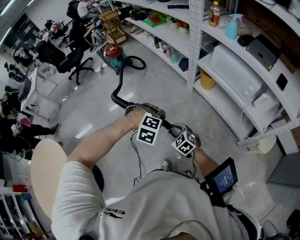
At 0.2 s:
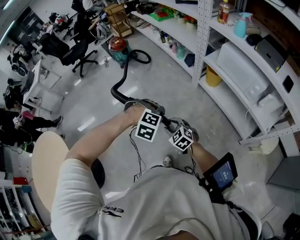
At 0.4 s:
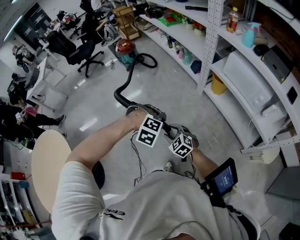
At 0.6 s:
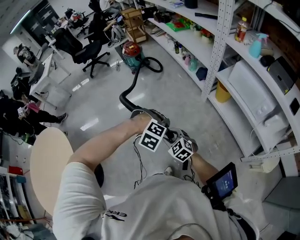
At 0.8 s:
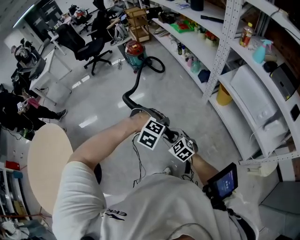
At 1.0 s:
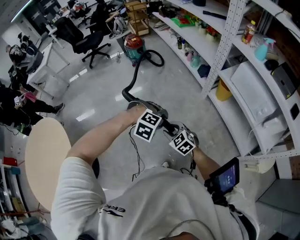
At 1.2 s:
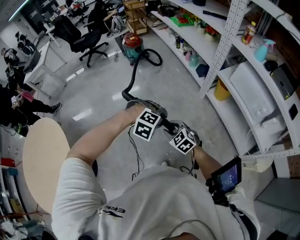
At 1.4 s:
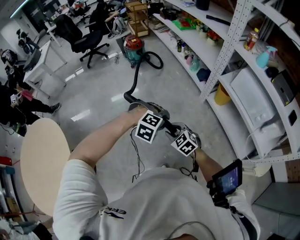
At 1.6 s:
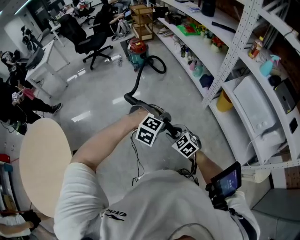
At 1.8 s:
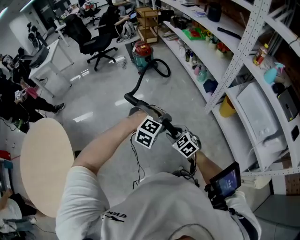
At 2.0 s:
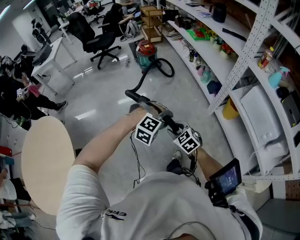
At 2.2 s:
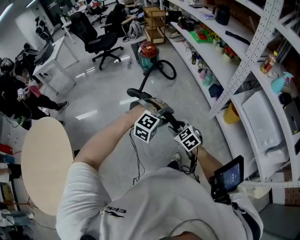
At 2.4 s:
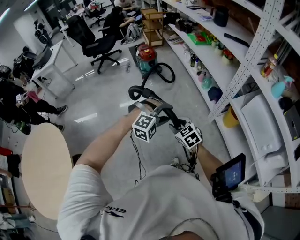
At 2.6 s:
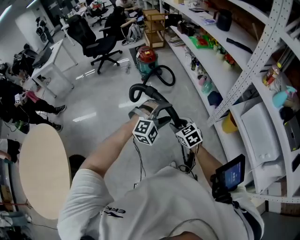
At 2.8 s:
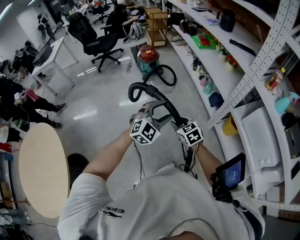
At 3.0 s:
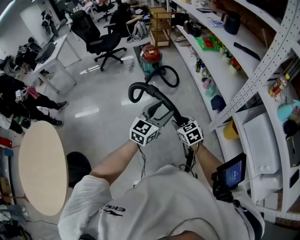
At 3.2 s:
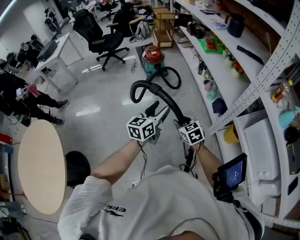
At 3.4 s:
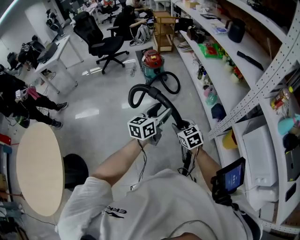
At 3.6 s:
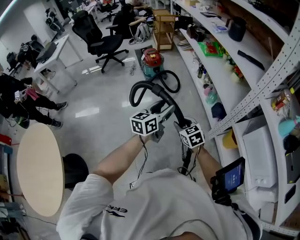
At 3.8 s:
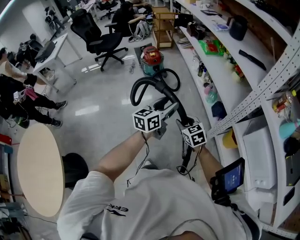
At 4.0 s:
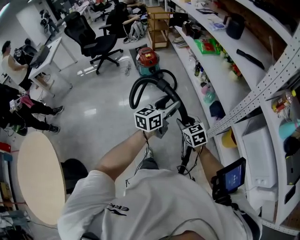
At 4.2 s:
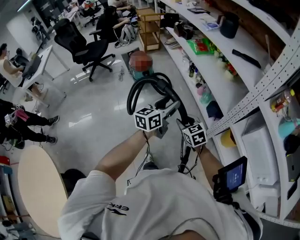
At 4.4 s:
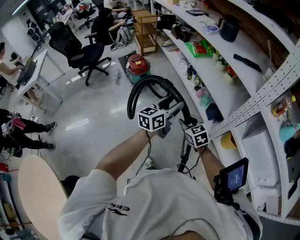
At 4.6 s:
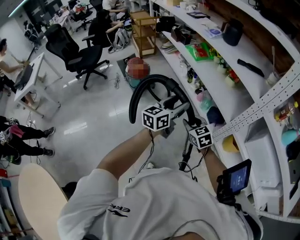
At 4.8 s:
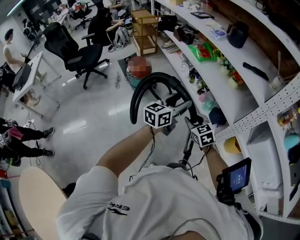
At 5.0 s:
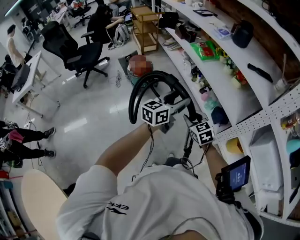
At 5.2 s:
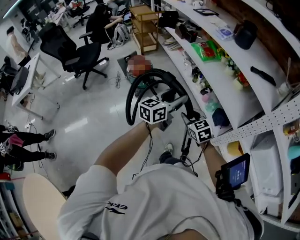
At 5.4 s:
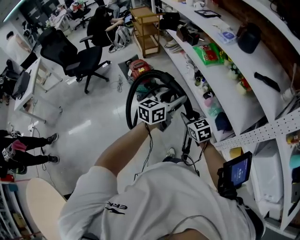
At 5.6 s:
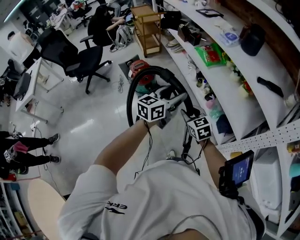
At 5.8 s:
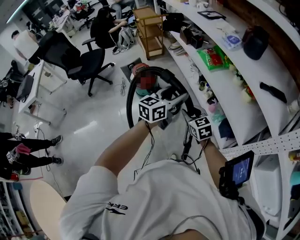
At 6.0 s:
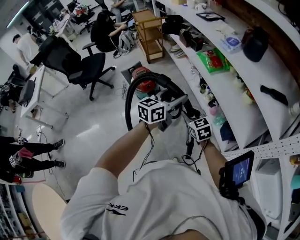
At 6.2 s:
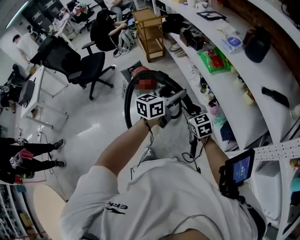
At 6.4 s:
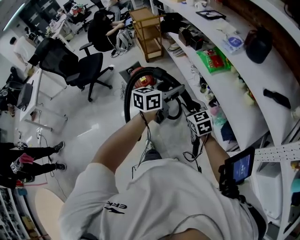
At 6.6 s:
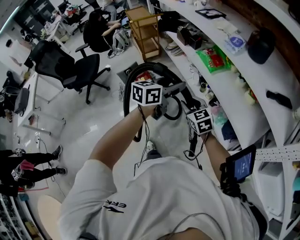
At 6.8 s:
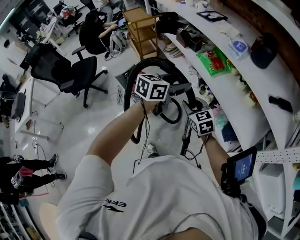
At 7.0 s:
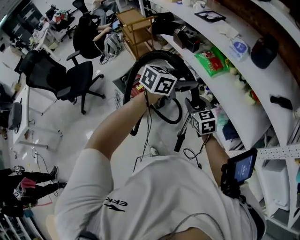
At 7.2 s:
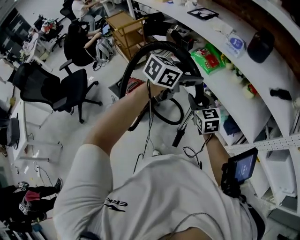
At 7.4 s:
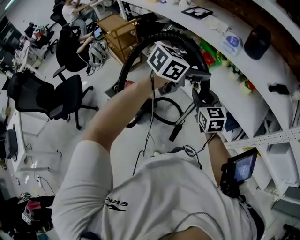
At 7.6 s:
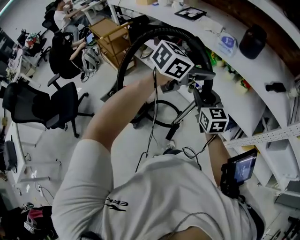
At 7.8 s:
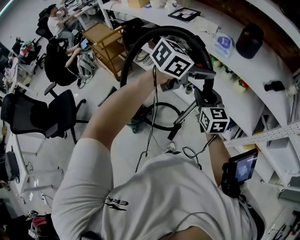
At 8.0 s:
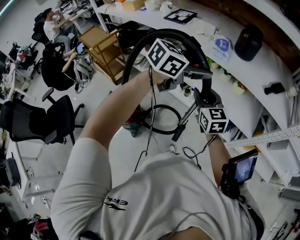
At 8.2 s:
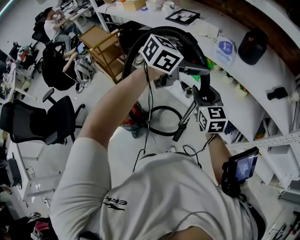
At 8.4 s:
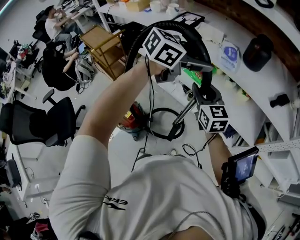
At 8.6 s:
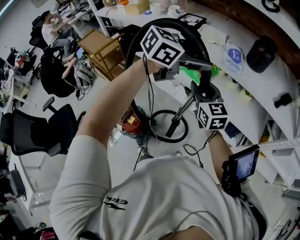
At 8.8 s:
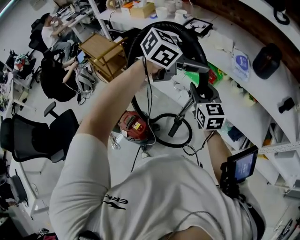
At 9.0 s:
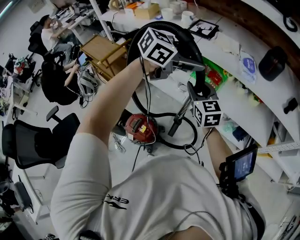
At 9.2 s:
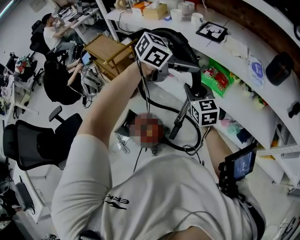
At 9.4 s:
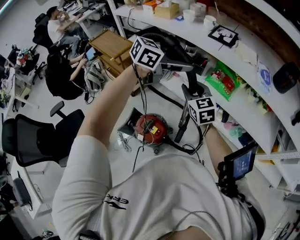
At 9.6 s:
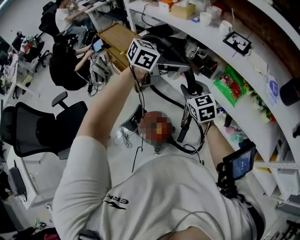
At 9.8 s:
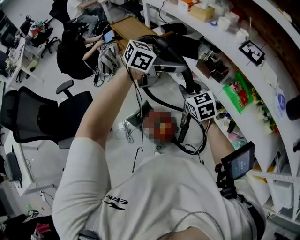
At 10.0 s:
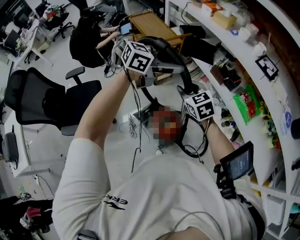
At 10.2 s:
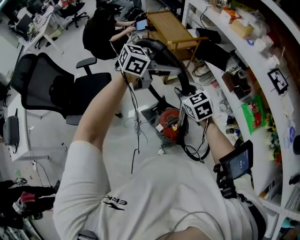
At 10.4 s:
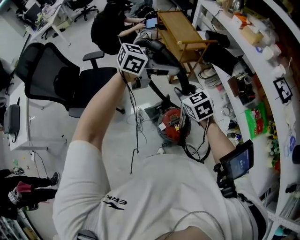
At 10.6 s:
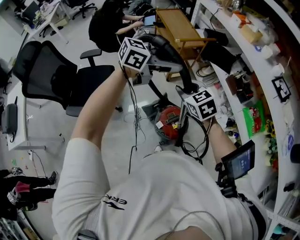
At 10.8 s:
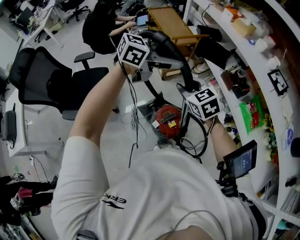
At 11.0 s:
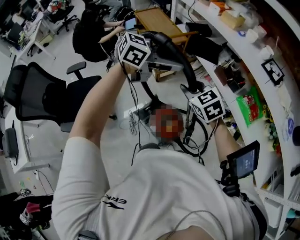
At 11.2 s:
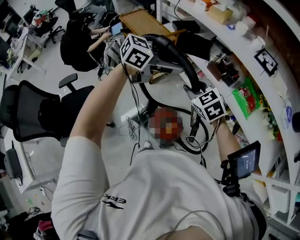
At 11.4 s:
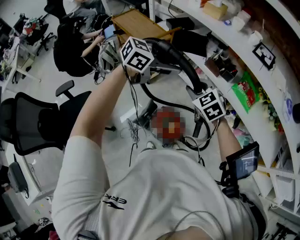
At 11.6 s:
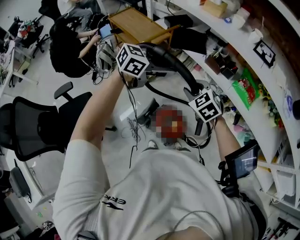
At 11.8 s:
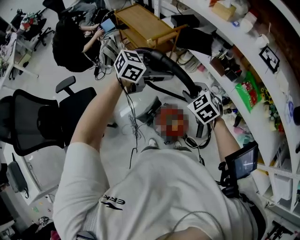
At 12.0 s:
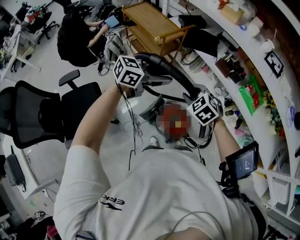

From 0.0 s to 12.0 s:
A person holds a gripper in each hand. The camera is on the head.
From 0.0 s to 1.6 s: The right gripper changes place by some 20 cm; the left gripper ends up approximately 15 cm from where it was.
From 1.6 s to 3.0 s: Both grippers travel together forward, approximately 30 cm. The left gripper points its fingers roughly 60 degrees further upward.
From 3.0 s to 4.4 s: The two grippers go approximately 25 cm forward. The left gripper turns by roughly 30 degrees.
From 4.4 s to 6.0 s: Both grippers travel together forward, roughly 30 cm.
From 6.0 s to 7.6 s: The right gripper moves some 25 cm, and swivels about 40 degrees. Meanwhile the left gripper changes place by roughly 20 cm, and swivels roughly 60 degrees.
From 7.6 s to 9.0 s: Both grippers move to the left, about 25 cm.
From 9.0 s to 10.4 s: Both grippers are carried roughly 50 cm. The right gripper turns by some 50 degrees; the left gripper turns by approximately 40 degrees.
From 10.4 s to 12.0 s: The left gripper moves downward, some 10 cm, while the right gripper changes its angle by roughly 20 degrees.

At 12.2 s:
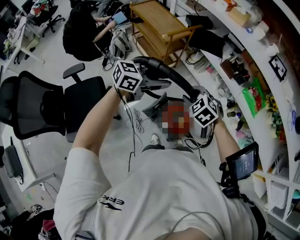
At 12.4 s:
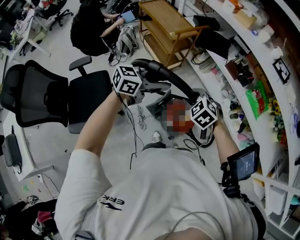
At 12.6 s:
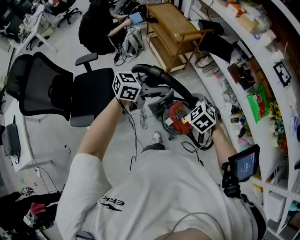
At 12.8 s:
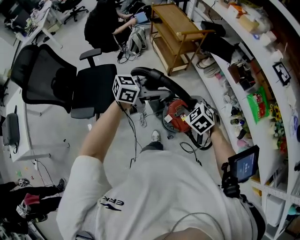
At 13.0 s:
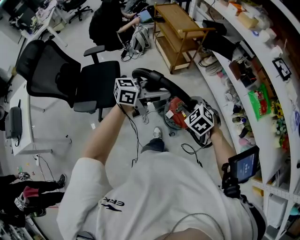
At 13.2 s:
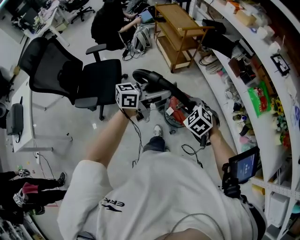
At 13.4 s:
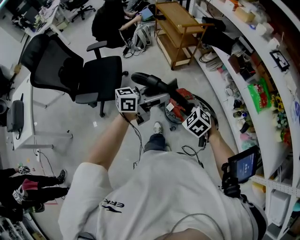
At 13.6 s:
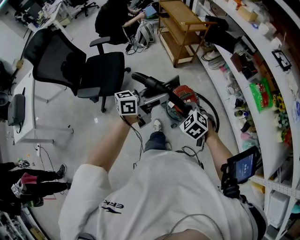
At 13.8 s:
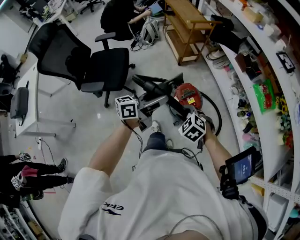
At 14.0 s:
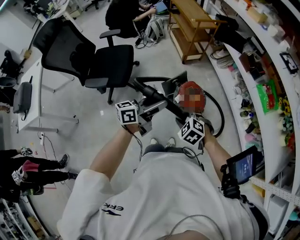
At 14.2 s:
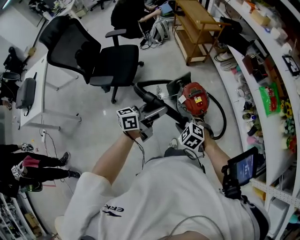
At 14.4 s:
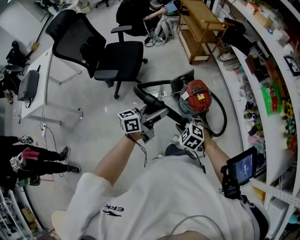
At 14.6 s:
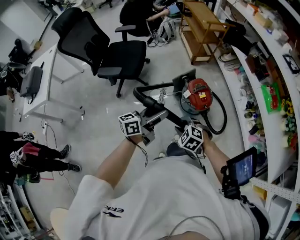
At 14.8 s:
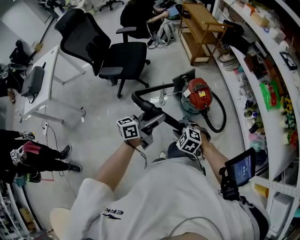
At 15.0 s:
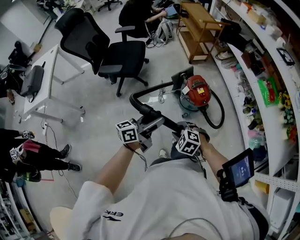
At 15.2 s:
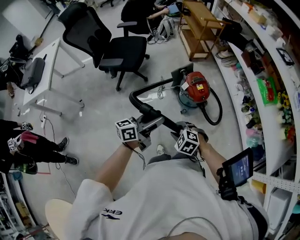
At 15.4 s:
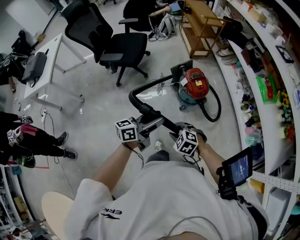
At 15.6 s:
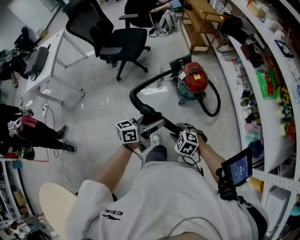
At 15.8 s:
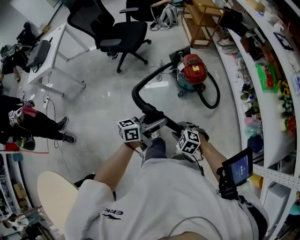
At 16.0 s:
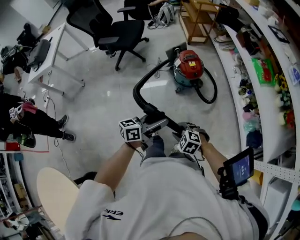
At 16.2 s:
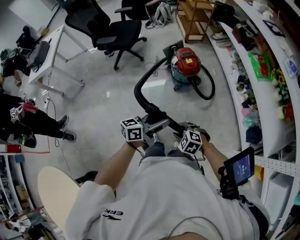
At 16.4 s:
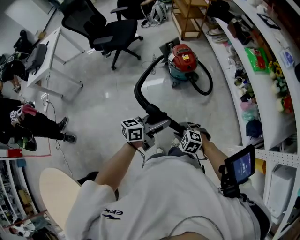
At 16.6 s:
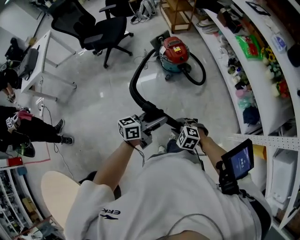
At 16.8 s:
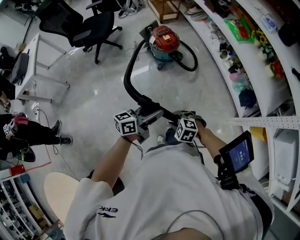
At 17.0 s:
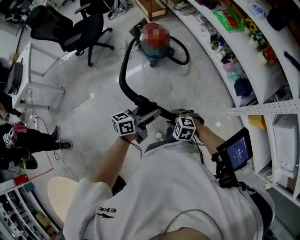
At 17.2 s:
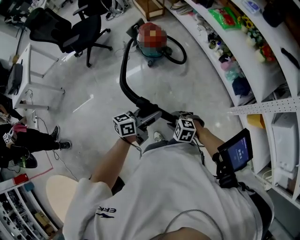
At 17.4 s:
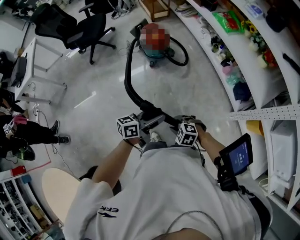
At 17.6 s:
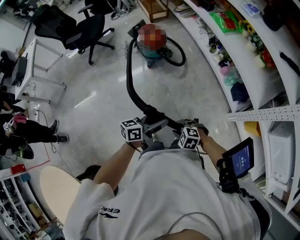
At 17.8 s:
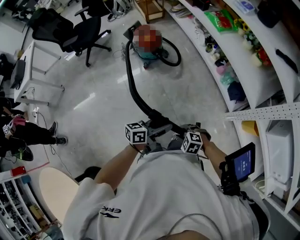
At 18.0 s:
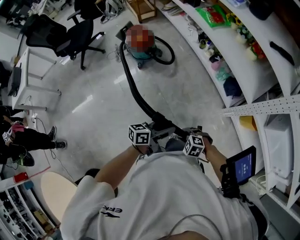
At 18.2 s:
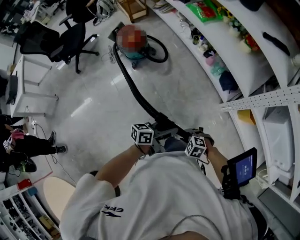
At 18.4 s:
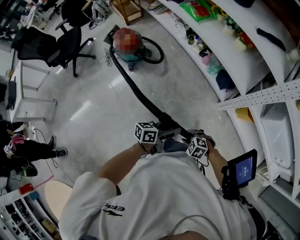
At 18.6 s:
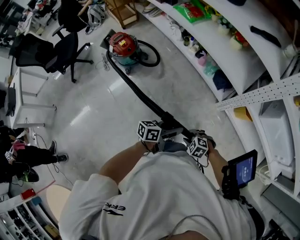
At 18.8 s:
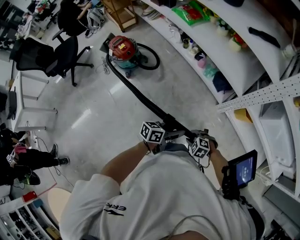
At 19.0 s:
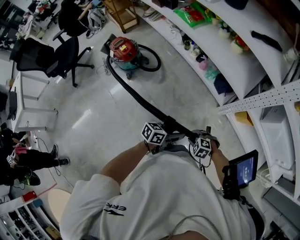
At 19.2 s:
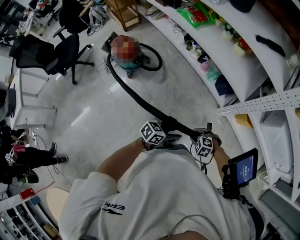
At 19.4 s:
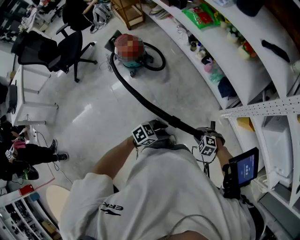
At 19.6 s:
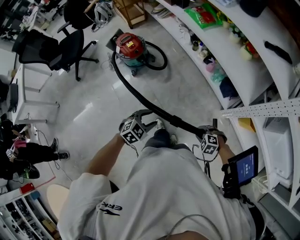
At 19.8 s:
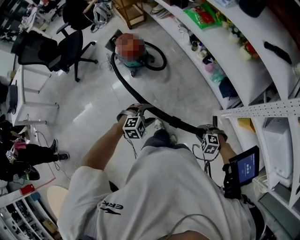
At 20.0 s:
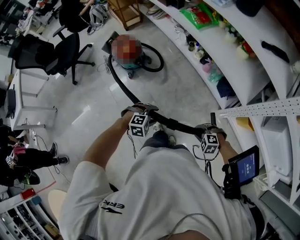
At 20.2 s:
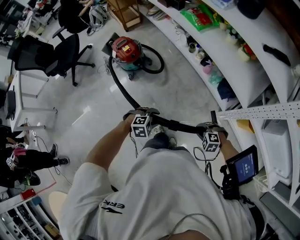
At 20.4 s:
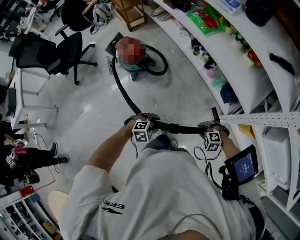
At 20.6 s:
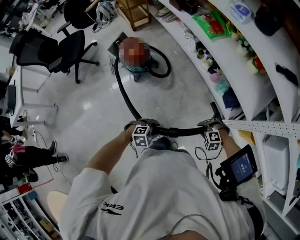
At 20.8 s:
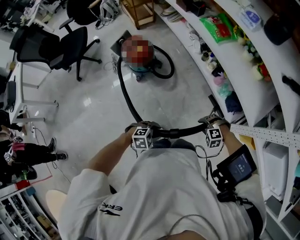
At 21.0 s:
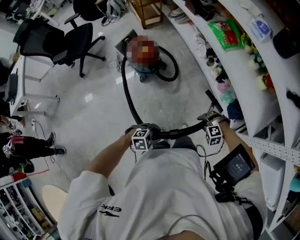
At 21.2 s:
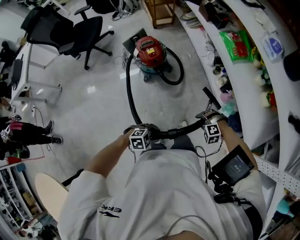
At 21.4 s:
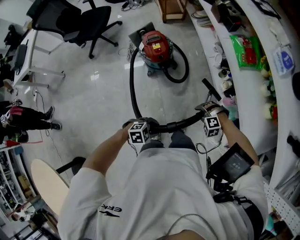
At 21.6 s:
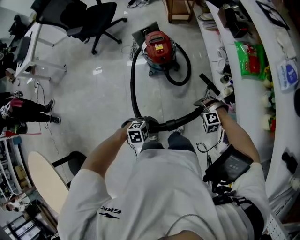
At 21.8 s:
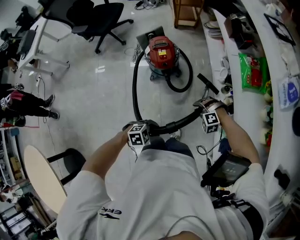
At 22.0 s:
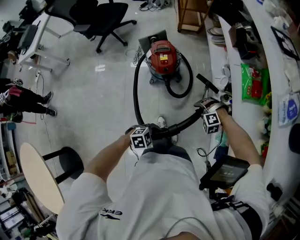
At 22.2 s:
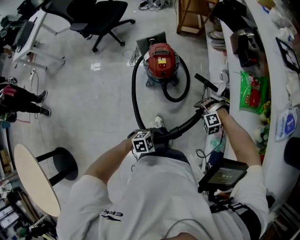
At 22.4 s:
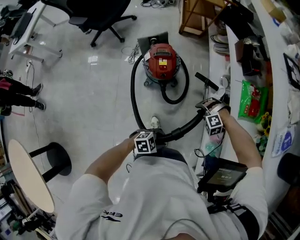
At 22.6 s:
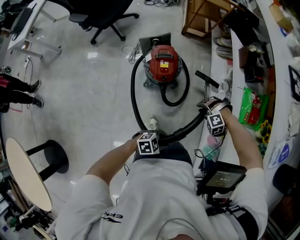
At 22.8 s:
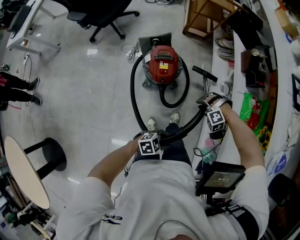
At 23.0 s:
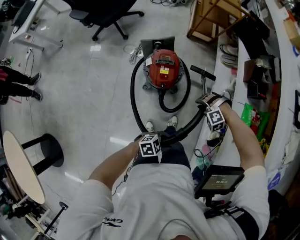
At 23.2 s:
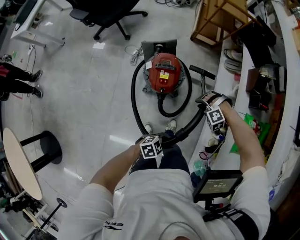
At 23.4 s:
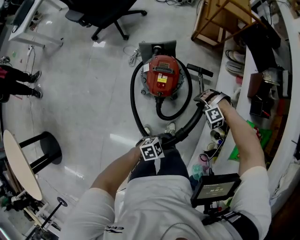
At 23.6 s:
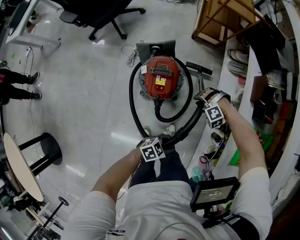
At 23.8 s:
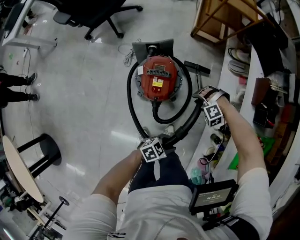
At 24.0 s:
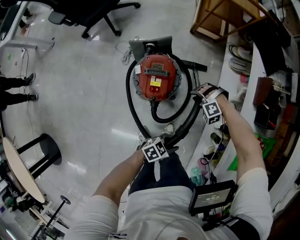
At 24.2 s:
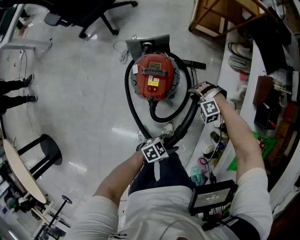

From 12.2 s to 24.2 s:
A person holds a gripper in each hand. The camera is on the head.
From 12.2 s to 13.8 s: The right gripper ends up some 35 cm from where it was, and rotates some 20 degrees; the left gripper moves approximately 30 cm, and turns by roughly 50 degrees.
From 13.8 s to 15.2 s: The grippers both shift backward by approximately 30 cm.
From 15.2 s to 16.6 s: Both grippers move backward and to the right, about 35 cm.
From 16.6 s to 18.2 s: The left gripper ends up some 35 cm from where it was, and swivels approximately 20 degrees. Meanwhile the right gripper ends up about 35 cm from where it was.
From 18.2 s to 19.8 s: The left gripper shifts by some 15 cm, and twists roughly 80 degrees clockwise, seen from behind. The right gripper shifts by about 15 cm.
From 19.8 s to 21.2 s: The left gripper moves roughly 10 cm, and changes its angle by about 30 degrees, while the right gripper shifts by about 30 cm, and changes its angle by some 40 degrees.
From 21.2 s to 22.6 s: The right gripper ends up about 35 cm from where it was, and rotates approximately 30 degrees. Meanwhile the left gripper shifts by roughly 25 cm, and rotates some 30 degrees.
From 22.6 s to 24.2 s: The right gripper shifts by roughly 35 cm, while the left gripper moves approximately 30 cm, and swivels some 30 degrees.
